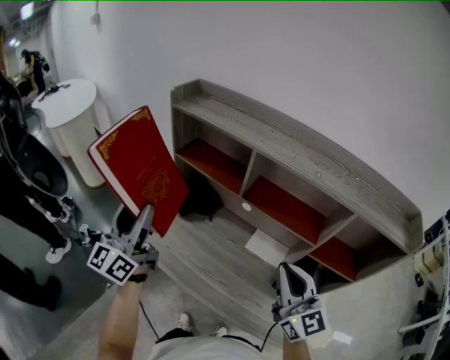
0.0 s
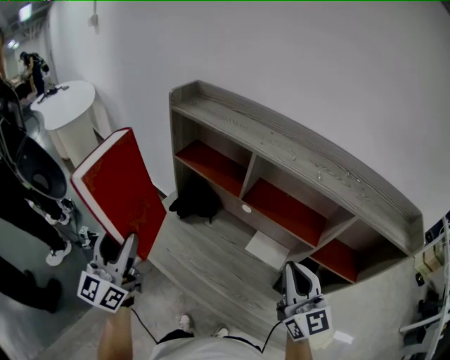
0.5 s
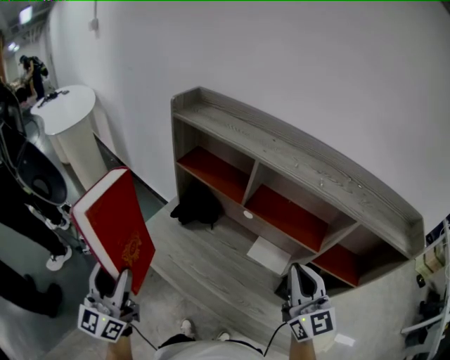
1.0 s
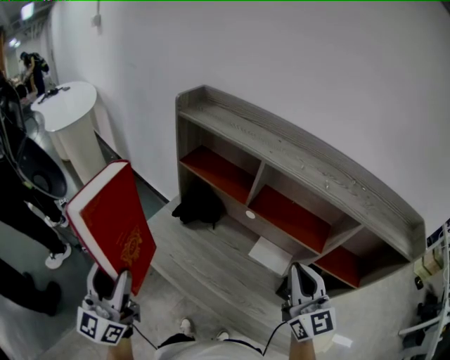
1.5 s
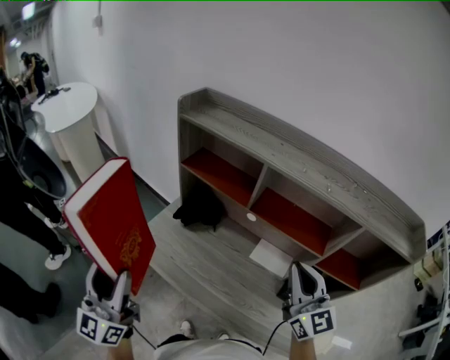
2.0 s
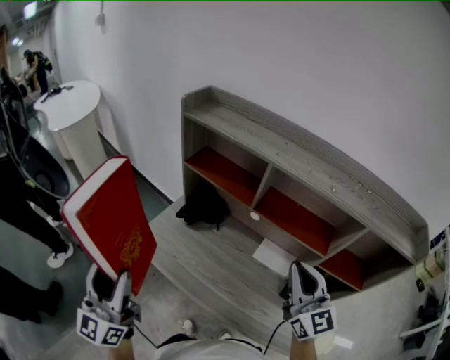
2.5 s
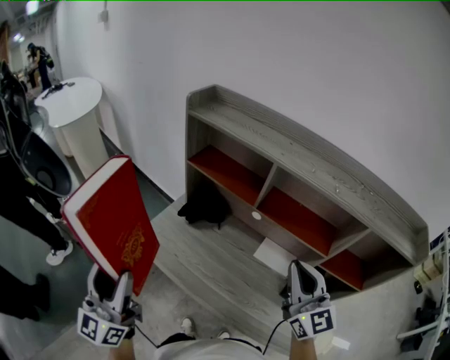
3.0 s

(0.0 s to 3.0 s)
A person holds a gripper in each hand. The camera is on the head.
0.0 s - 1.5 s: The left gripper is displaced backward and to the left by approximately 15 cm.
1.5 s - 3.0 s: There are only small adjustments of the grippers.

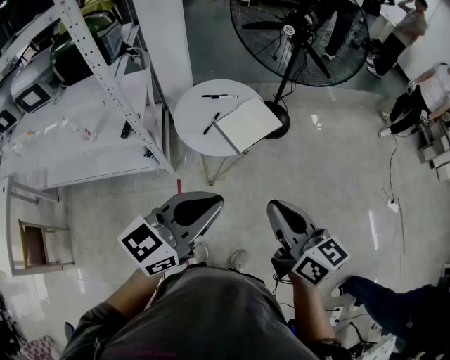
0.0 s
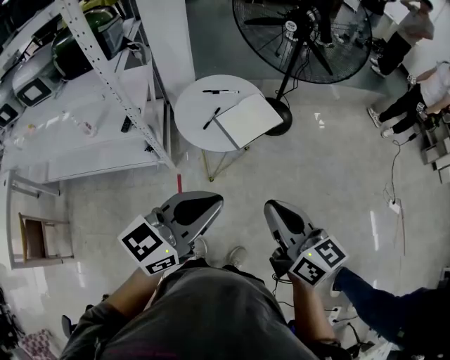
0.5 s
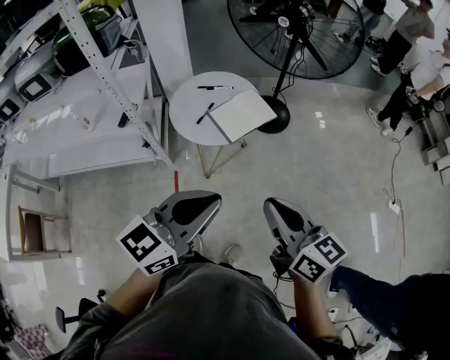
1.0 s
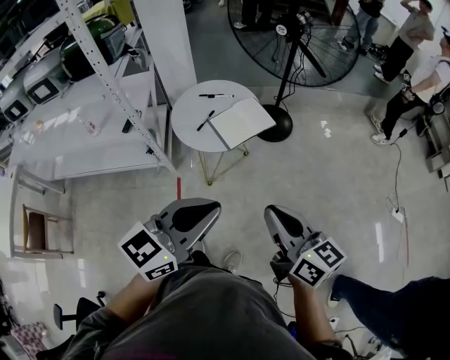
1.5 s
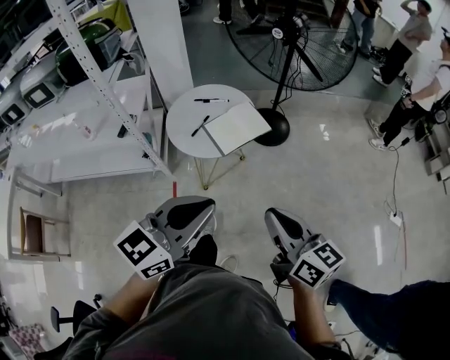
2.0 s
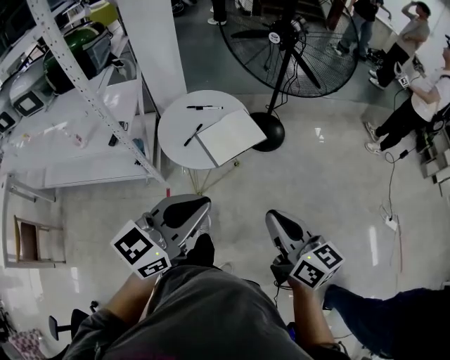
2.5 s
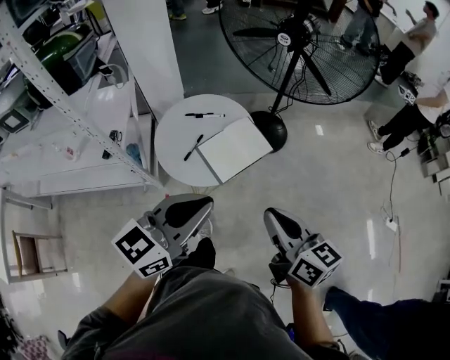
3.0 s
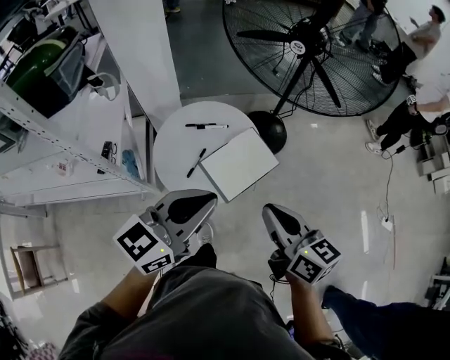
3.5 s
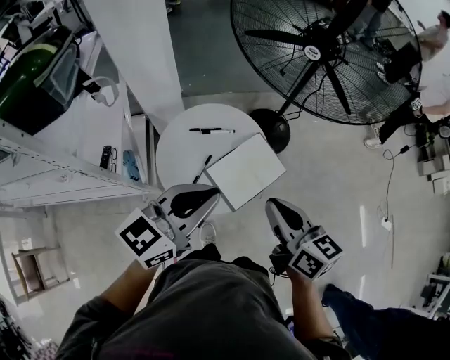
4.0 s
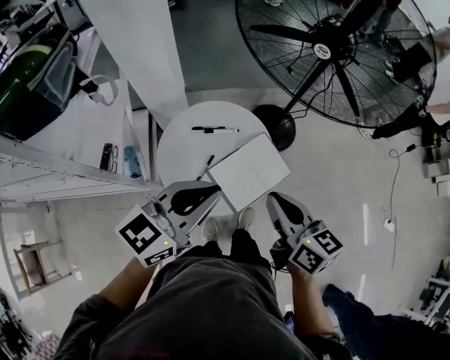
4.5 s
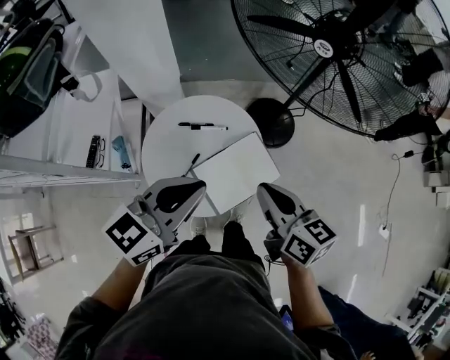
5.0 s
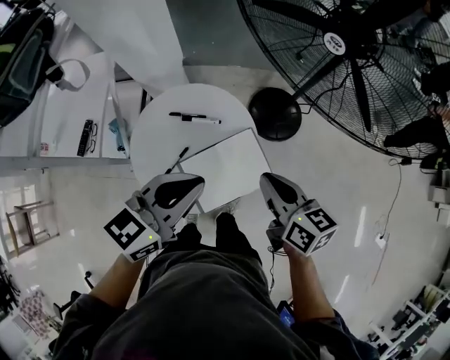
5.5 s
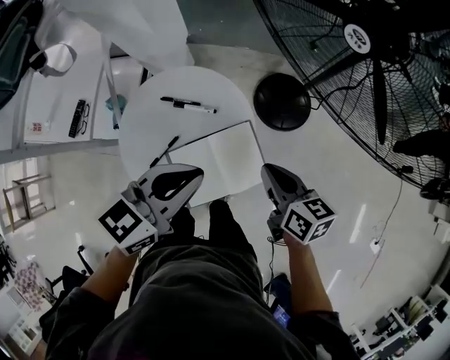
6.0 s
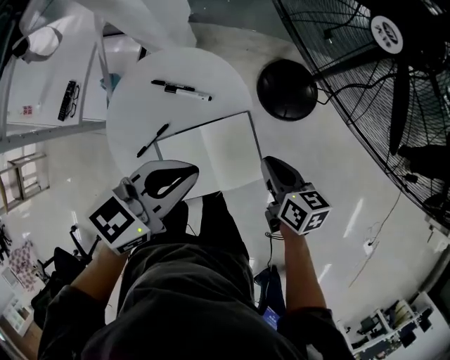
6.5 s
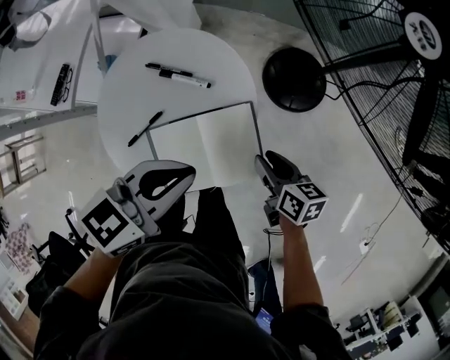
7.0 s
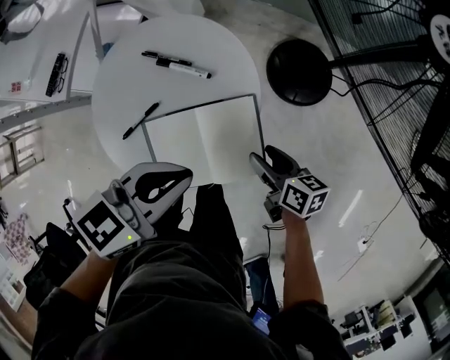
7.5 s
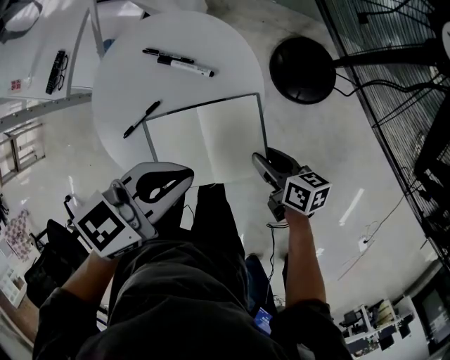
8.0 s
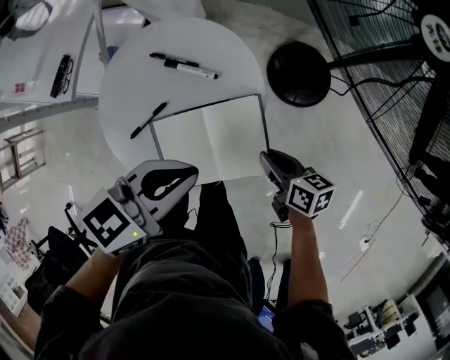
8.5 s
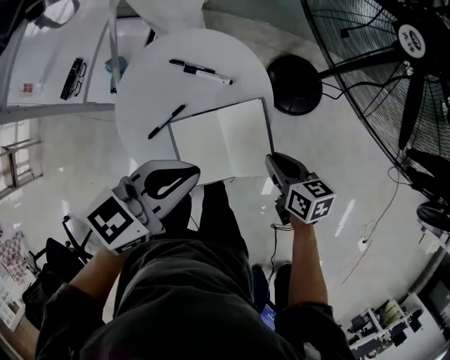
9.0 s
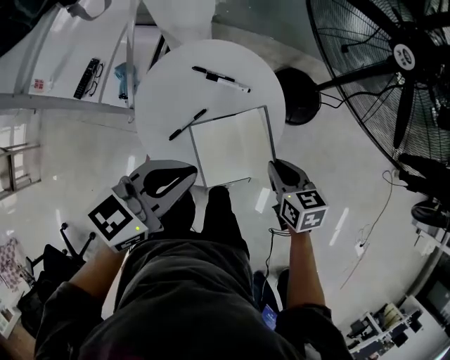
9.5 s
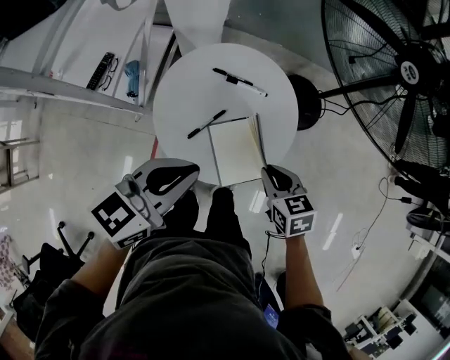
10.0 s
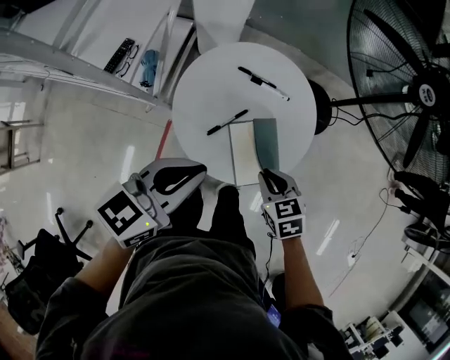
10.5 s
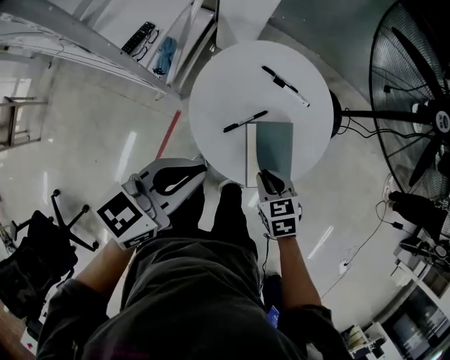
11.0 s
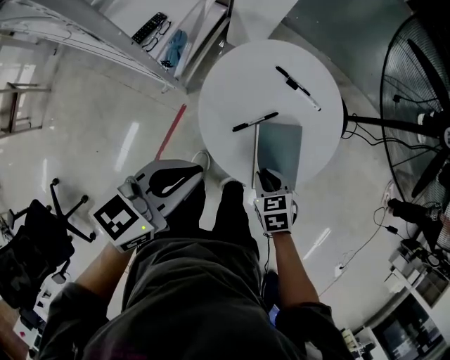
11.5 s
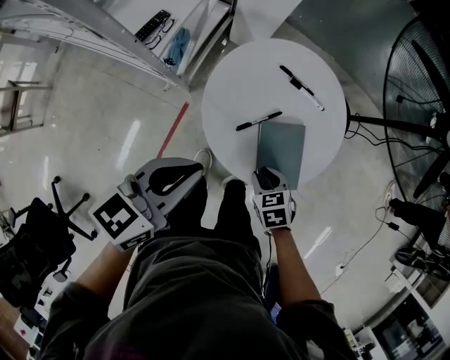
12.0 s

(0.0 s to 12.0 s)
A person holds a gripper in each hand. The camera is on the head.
0.0 s - 2.0 s: The grippers both shift to the right by some 10 cm.
2.0 s - 4.0 s: The left gripper heads forward, covering about 35 cm. Meanwhile the right gripper goes about 35 cm forward and to the left.
4.0 s - 6.0 s: Both grippers move forward, downward and to the right, about 25 cm. The right gripper swivels about 20 degrees. The left gripper swivels roughly 20 degrees.
6.0 s - 8.0 s: The left gripper goes roughly 10 cm downward; the right gripper travels downward by approximately 20 cm, changes its angle by some 20 degrees, and opens its fingers.
8.0 s - 10.0 s: The left gripper moves to the left and upward, roughly 20 cm, while the right gripper goes some 20 cm to the left, upward and backward, changes its angle by about 40 degrees, and closes its fingers.
10.0 s - 12.0 s: The left gripper moves to the left, roughly 15 cm; the right gripper goes some 15 cm to the left and downward, and changes its angle by about 20 degrees.

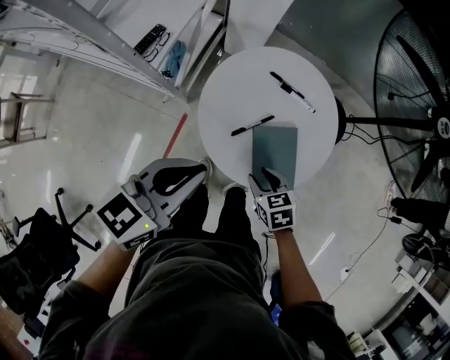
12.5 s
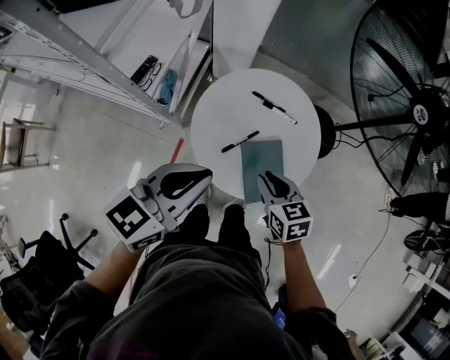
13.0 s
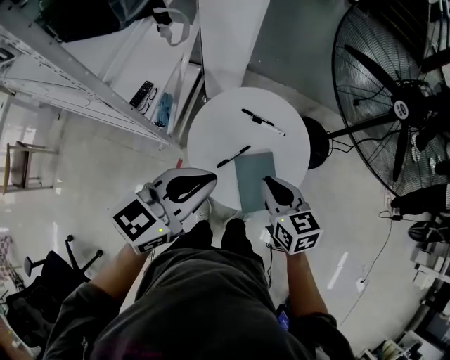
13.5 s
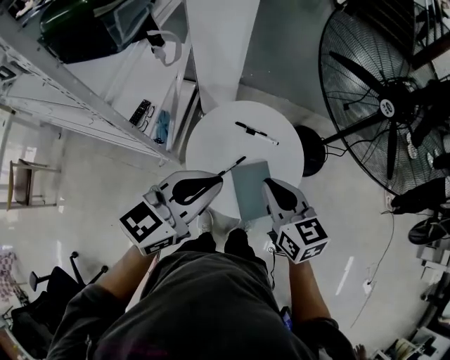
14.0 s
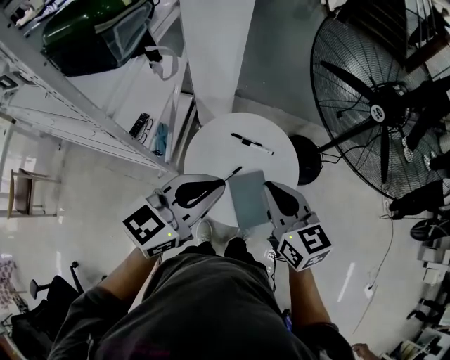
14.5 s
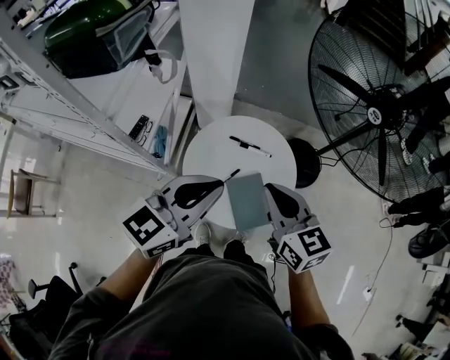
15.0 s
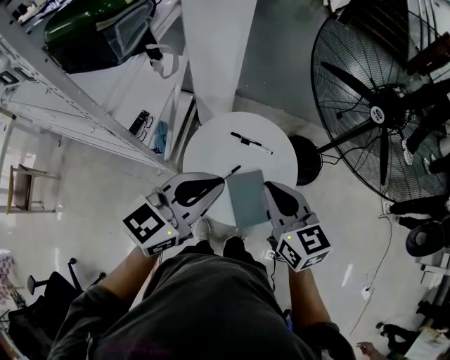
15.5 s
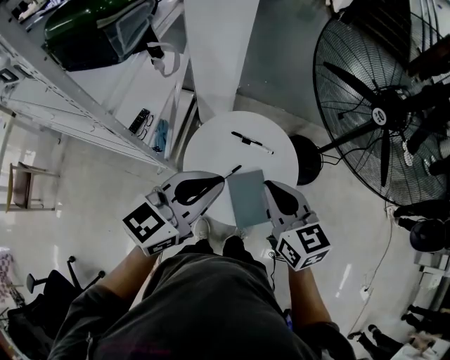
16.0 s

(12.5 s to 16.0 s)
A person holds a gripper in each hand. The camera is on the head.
12.5 s - 14.5 s: The left gripper shifts roughly 15 cm upward and to the right, and turns by about 20 degrees; the right gripper is displaced upward by some 35 cm, tilts its fingers some 40 degrees upward, and closes its fingers.
14.5 s - 16.0 s: Neither gripper changes place.

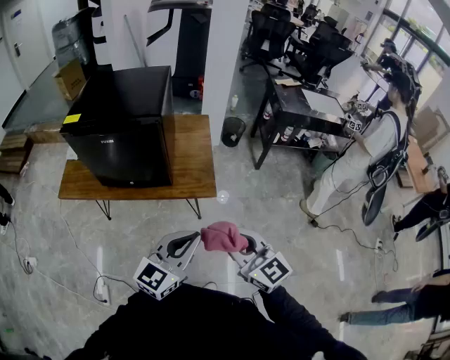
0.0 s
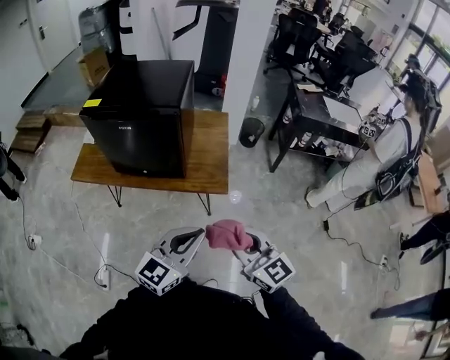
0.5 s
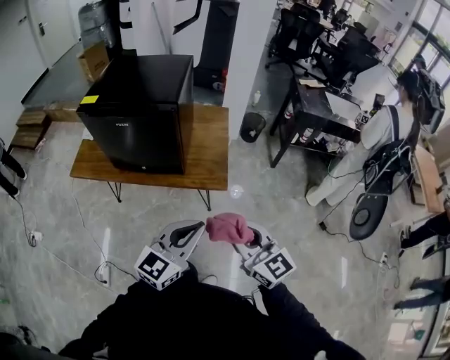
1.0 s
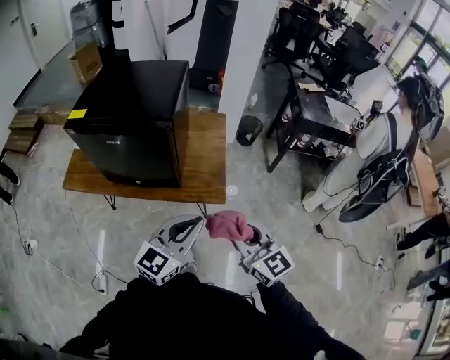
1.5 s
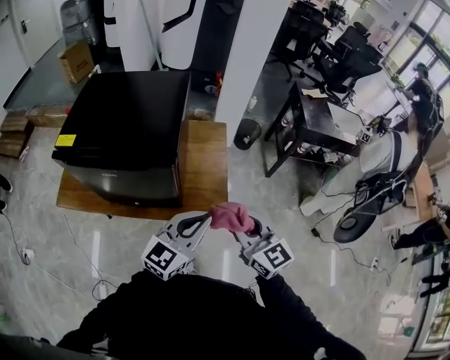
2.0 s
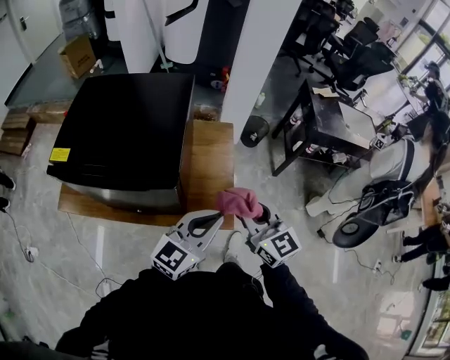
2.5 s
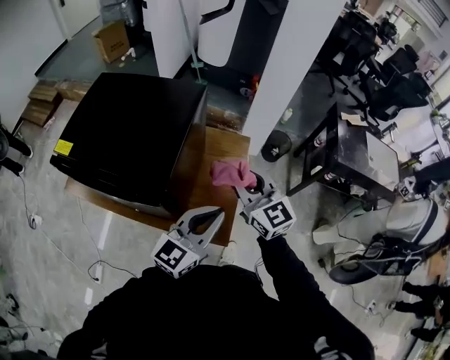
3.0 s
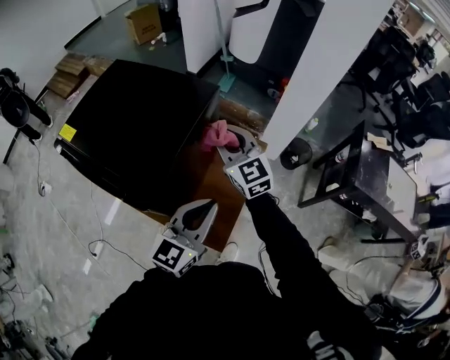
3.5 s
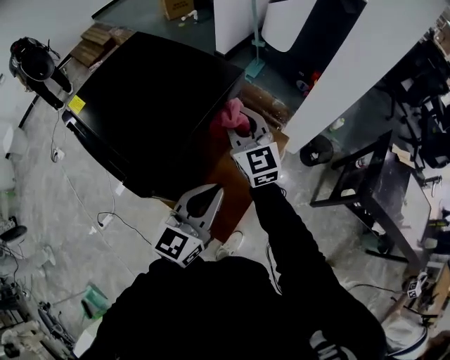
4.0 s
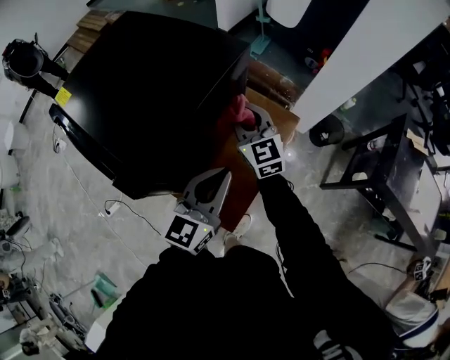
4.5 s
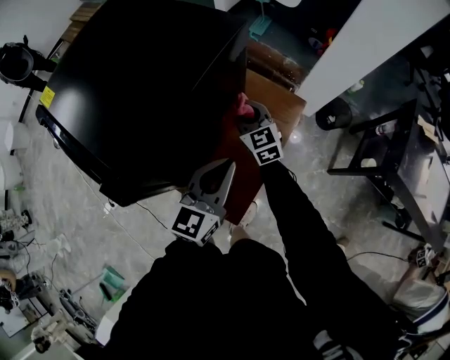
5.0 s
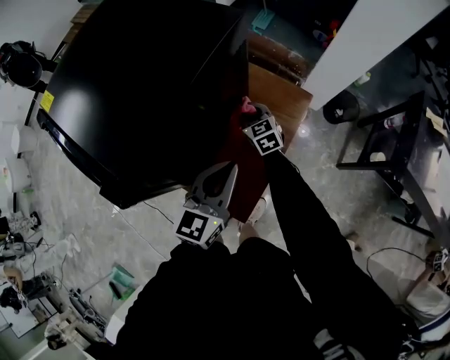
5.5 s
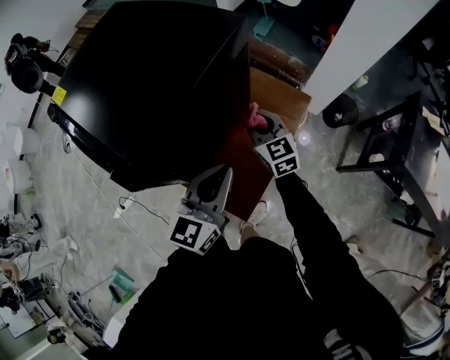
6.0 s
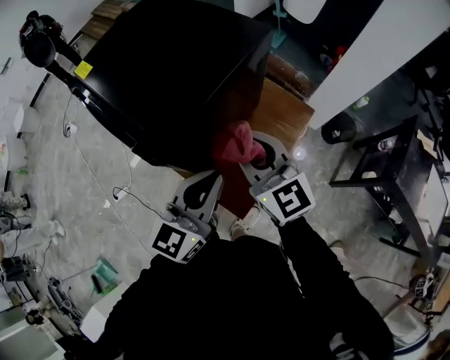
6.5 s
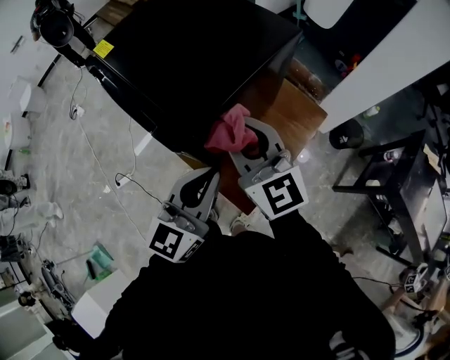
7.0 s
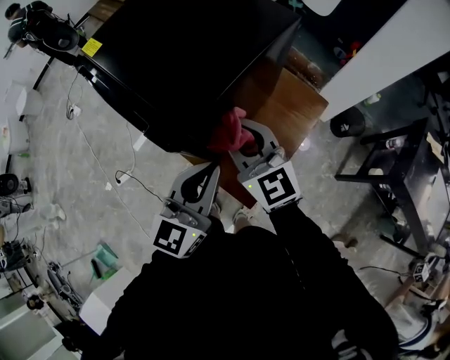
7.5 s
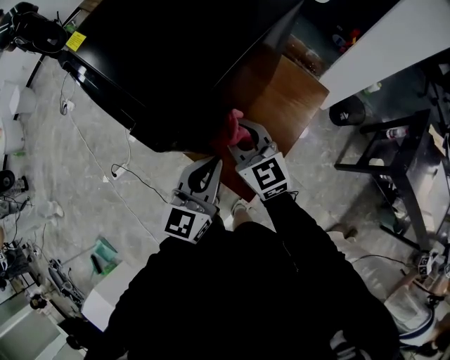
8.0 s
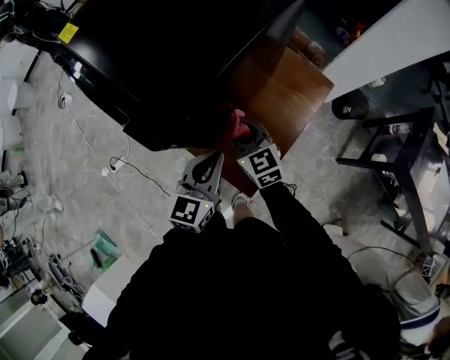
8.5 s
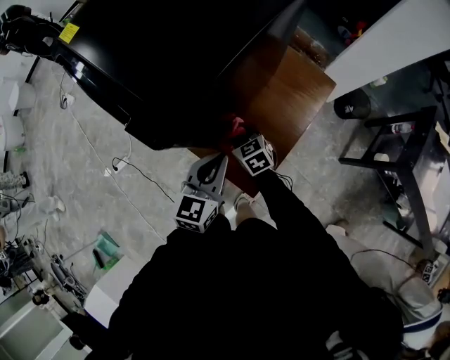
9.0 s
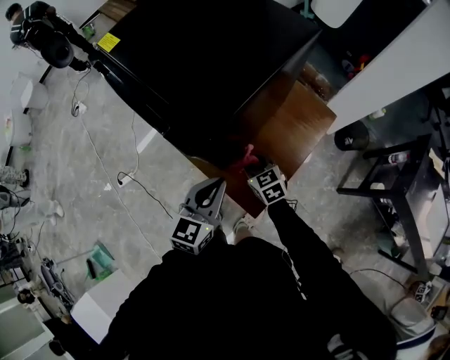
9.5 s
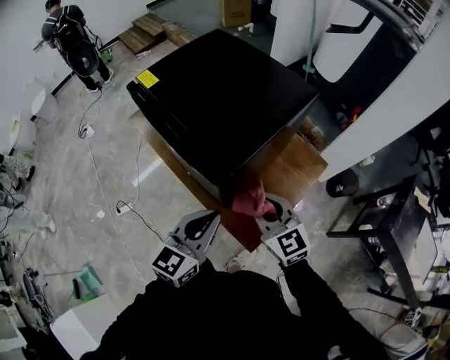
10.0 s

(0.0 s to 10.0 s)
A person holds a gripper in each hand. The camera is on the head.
0.0 s - 2.0 s: The two grippers go approximately 25 cm forward.
2.0 s - 4.0 s: The left gripper changes place by about 25 cm, and swivels roughly 40 degrees; the right gripper changes place by about 40 cm, and rotates about 30 degrees.
4.0 s - 6.0 s: The left gripper heads downward, covering about 10 cm, while the right gripper goes approximately 20 cm downward, and swivels about 20 degrees.
6.0 s - 8.0 s: The left gripper travels to the left by some 10 cm, and reaches some 10 cm upward, then returns, while the right gripper goes about 15 cm to the left and backward, and travels upward and back again, roughly 25 cm each way.
8.0 s - 10.0 s: The left gripper heads upward and to the left, covering approximately 15 cm; the right gripper shifts some 5 cm backward, and moves about 20 cm downward and comes back.
